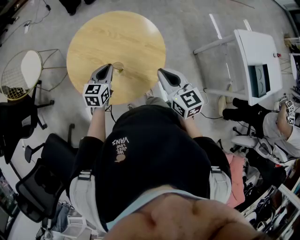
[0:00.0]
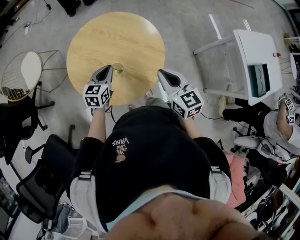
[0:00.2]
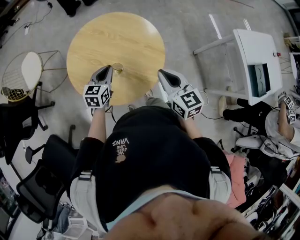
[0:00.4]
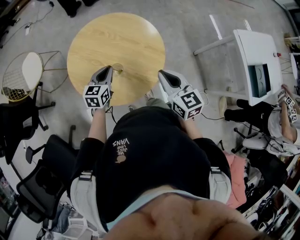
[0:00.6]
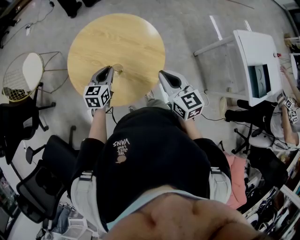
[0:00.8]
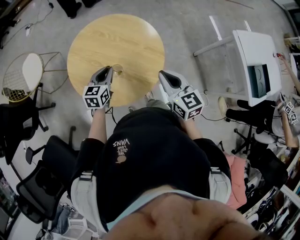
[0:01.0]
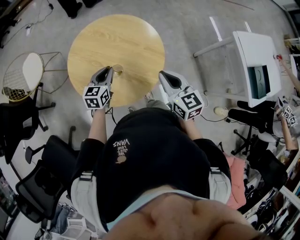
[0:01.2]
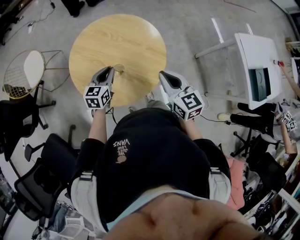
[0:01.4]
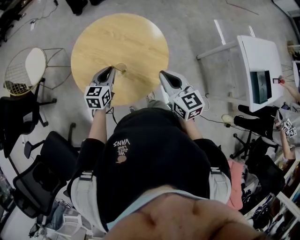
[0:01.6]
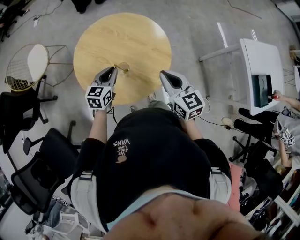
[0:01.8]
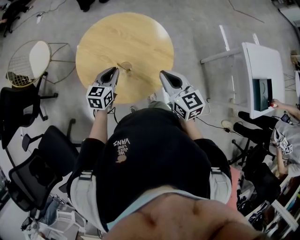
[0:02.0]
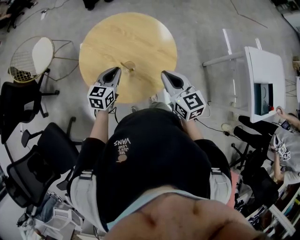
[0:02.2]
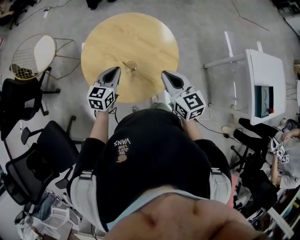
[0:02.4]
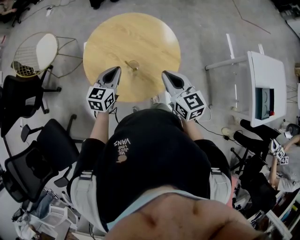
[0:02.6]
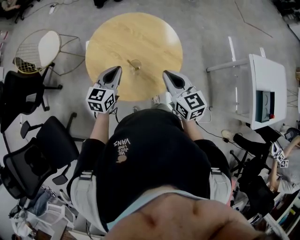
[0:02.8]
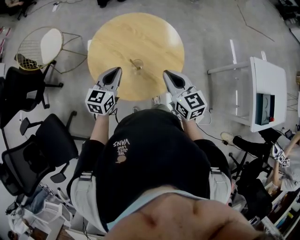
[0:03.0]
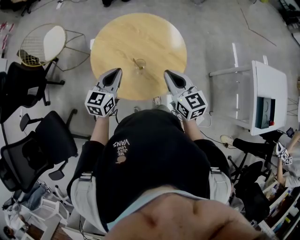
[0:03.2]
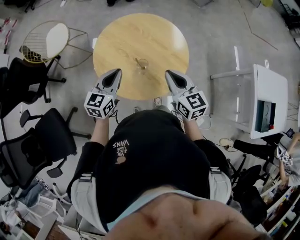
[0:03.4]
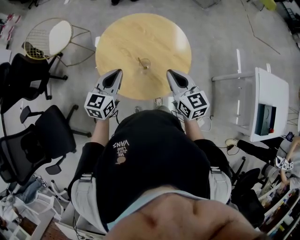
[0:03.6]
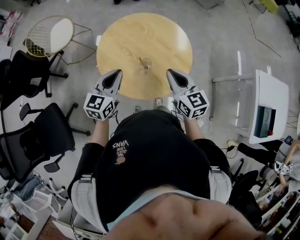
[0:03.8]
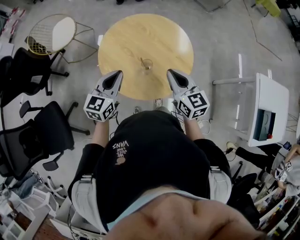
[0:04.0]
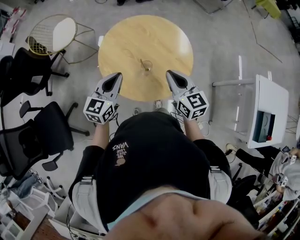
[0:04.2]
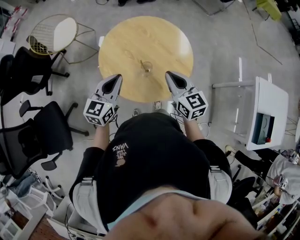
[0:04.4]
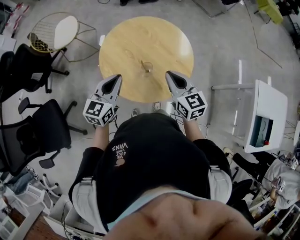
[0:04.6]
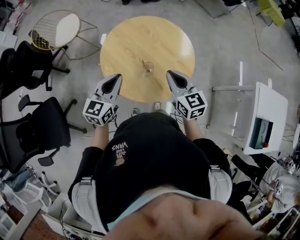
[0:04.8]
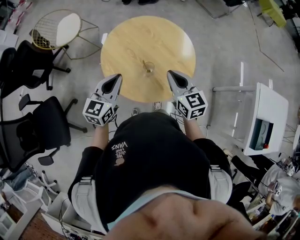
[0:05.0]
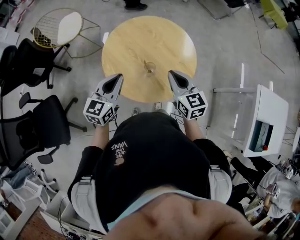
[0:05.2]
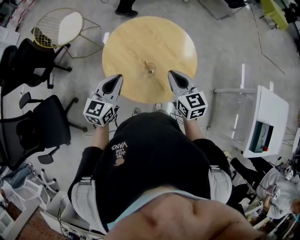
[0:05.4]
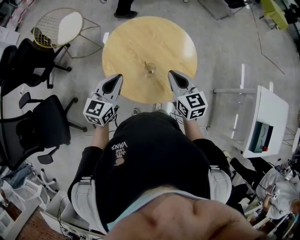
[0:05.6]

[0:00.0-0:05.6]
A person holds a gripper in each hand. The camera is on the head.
0.0 to 1.4 s: The grippers make only small movements.
1.4 to 2.8 s: The left gripper moves upward, approximately 5 cm.
2.8 to 4.2 s: The left gripper shifts approximately 10 cm upward and backward.
4.2 to 5.6 s: The grippers make only small movements.

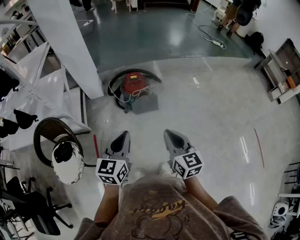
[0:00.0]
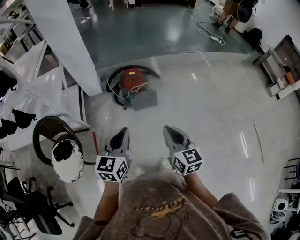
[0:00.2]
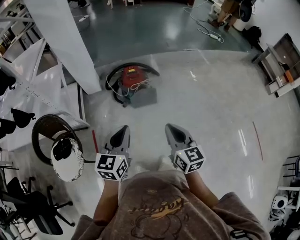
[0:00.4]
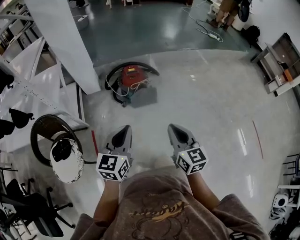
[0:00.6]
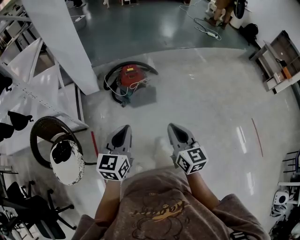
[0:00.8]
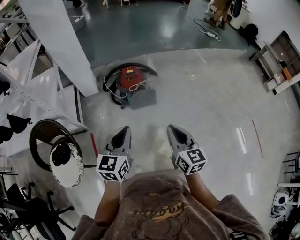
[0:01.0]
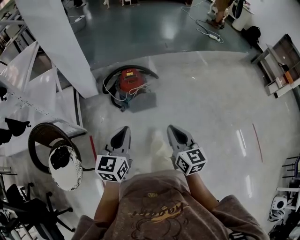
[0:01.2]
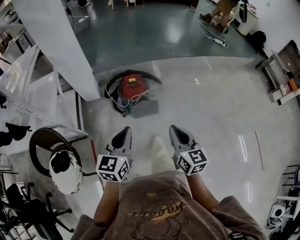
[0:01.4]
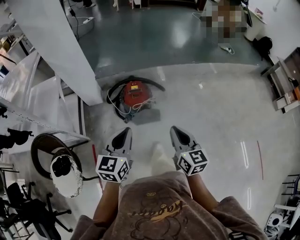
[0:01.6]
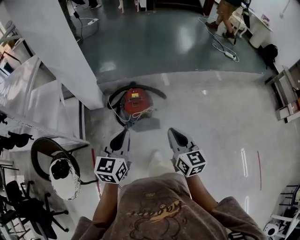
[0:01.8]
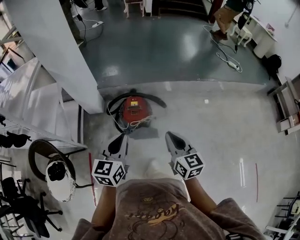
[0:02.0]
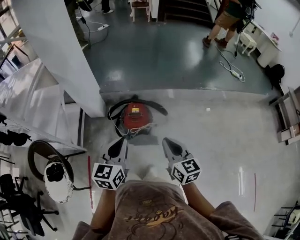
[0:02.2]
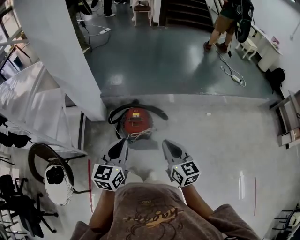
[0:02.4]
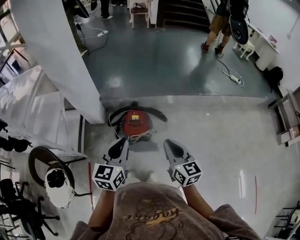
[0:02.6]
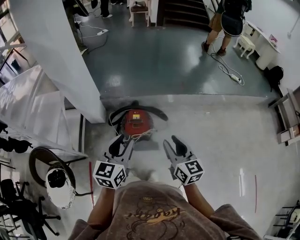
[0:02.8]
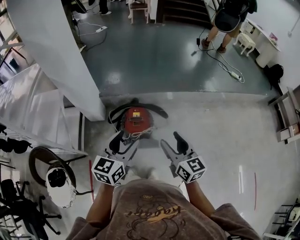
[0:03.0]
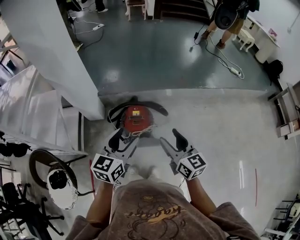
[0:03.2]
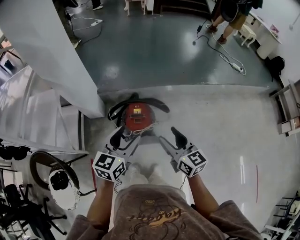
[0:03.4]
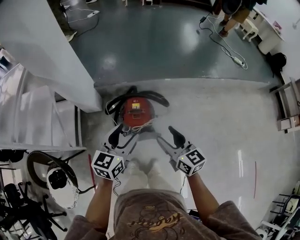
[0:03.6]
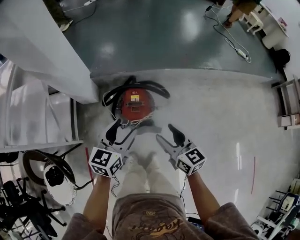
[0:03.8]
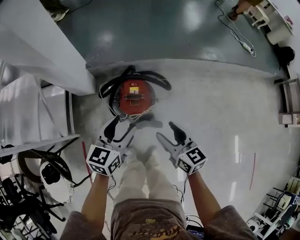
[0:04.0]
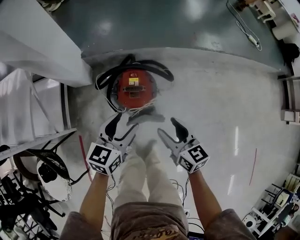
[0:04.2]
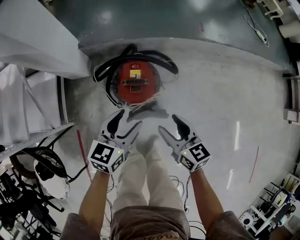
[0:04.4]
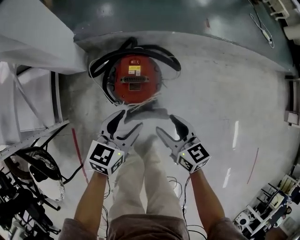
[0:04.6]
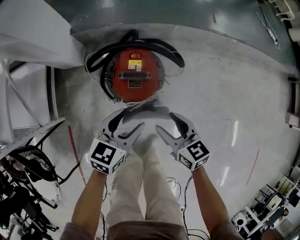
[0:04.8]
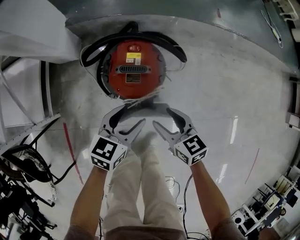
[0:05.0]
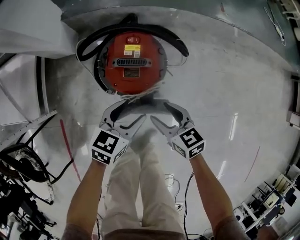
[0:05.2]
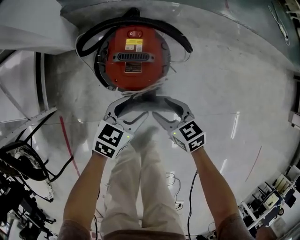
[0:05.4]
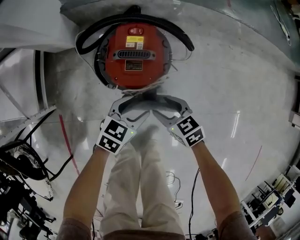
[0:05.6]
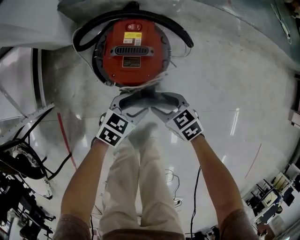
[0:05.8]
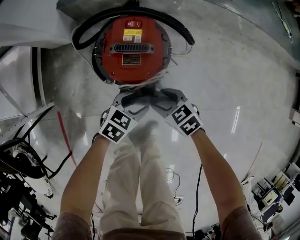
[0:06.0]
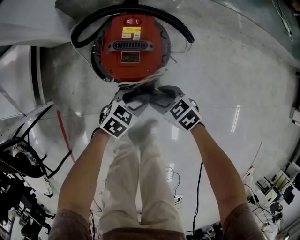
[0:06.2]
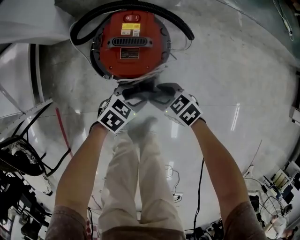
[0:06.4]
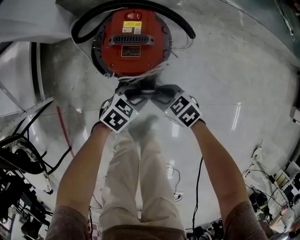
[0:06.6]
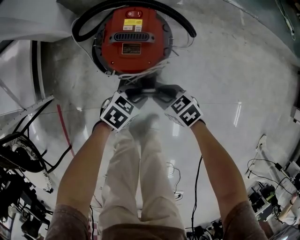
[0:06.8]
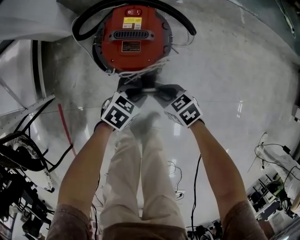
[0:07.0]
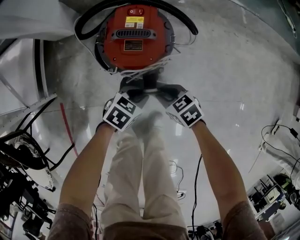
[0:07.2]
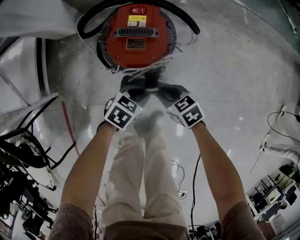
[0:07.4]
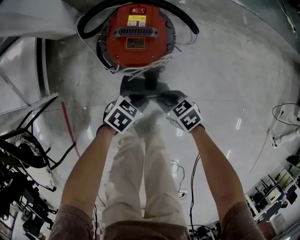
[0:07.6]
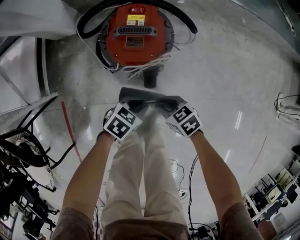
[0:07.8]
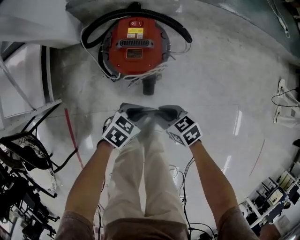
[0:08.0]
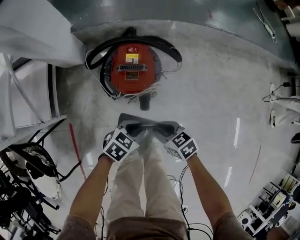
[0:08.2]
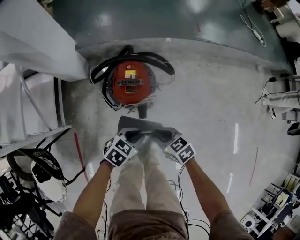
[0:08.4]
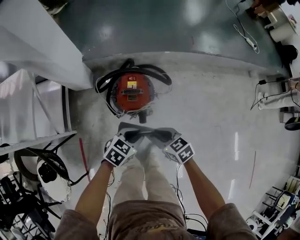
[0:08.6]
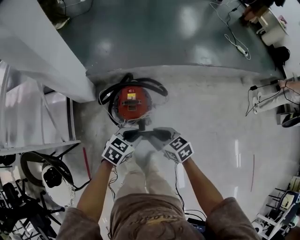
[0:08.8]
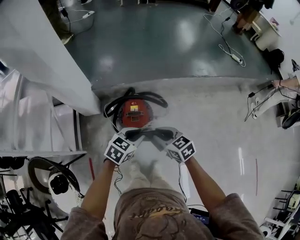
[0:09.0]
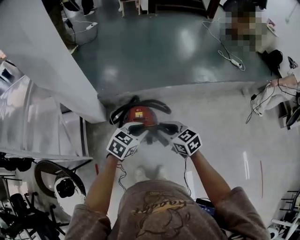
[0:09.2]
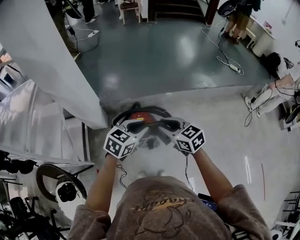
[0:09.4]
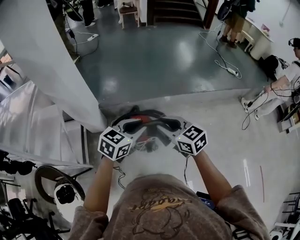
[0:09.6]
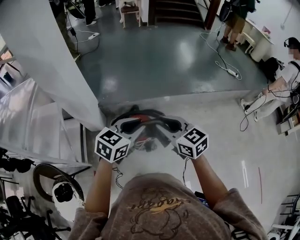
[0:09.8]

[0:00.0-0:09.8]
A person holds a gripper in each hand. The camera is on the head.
0.0 to 1.4 s: Both grippers move forward, roughly 10 cm.
1.4 to 2.8 s: The grippers both shift forward by roughly 20 cm. The left gripper opens its fingers. The right gripper opens.
2.8 to 4.2 s: The two grippers go some 25 cm downward and forward. The right gripper opens up; the left gripper opens.
4.2 to 5.6 s: Both grippers move downward, about 30 cm. The left gripper swivels approximately 20 degrees; the right gripper changes its angle by about 30 degrees.
5.6 to 7.0 s: The left gripper shifts some 5 cm downward, and closes up. The right gripper changes place by roughly 5 cm, and closes up.
7.0 to 8.4 s: The two grippers go about 20 cm upward.
8.4 to 9.8 s: The two grippers go about 40 cm upward. The left gripper swivels about 30 degrees; the right gripper rotates about 40 degrees.

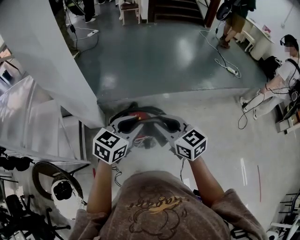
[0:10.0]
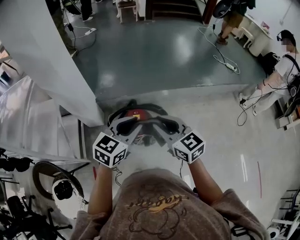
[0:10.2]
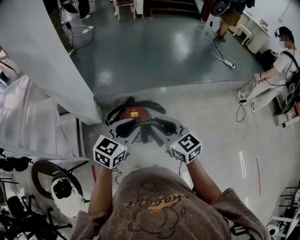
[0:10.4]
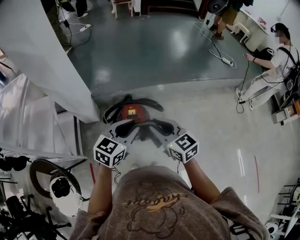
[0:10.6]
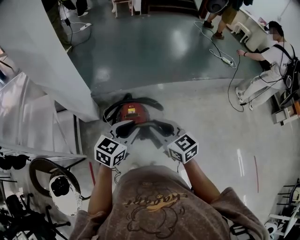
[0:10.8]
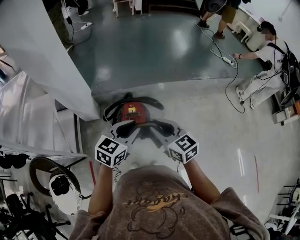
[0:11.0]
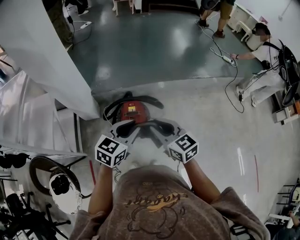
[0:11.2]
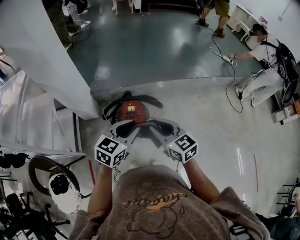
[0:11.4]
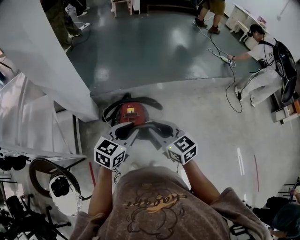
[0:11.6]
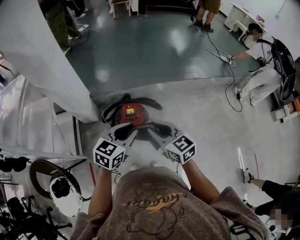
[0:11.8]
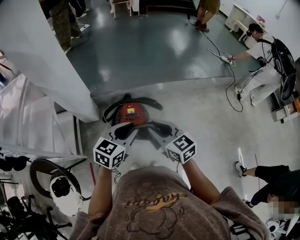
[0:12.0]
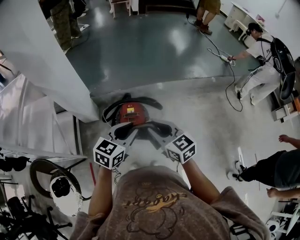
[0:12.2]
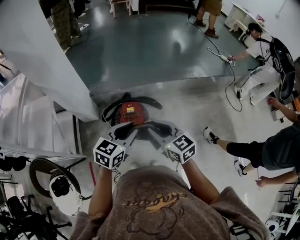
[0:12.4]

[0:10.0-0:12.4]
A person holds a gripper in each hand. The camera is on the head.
10.0 to 11.2 s: Both grippers move downward, roughly 5 cm.
11.2 to 12.4 s: Both grippers stay put.

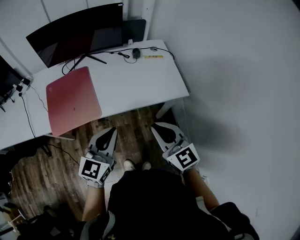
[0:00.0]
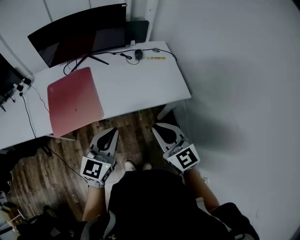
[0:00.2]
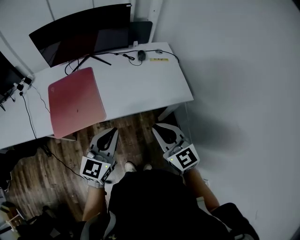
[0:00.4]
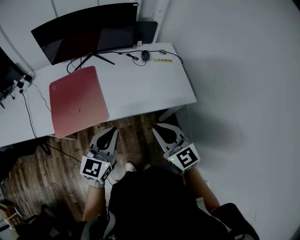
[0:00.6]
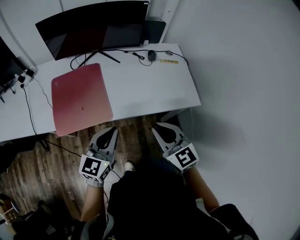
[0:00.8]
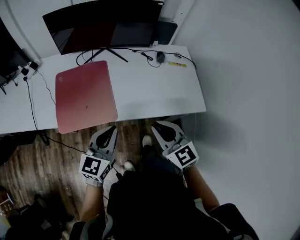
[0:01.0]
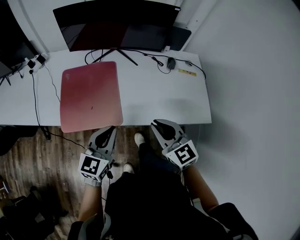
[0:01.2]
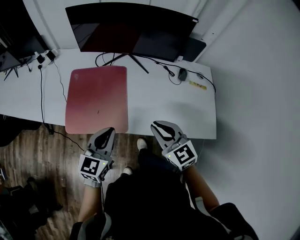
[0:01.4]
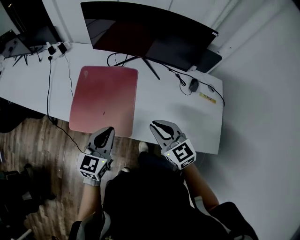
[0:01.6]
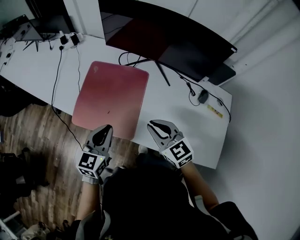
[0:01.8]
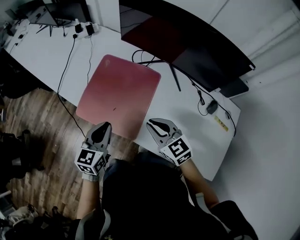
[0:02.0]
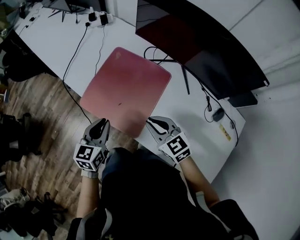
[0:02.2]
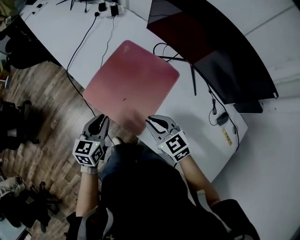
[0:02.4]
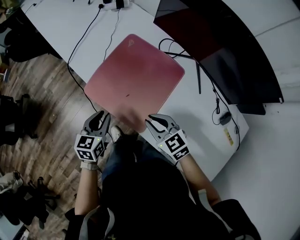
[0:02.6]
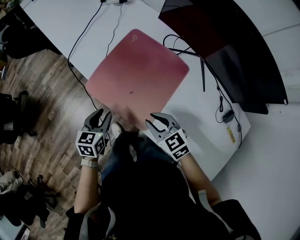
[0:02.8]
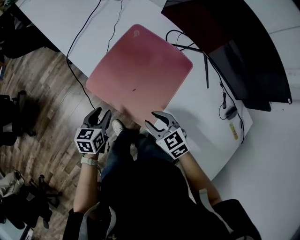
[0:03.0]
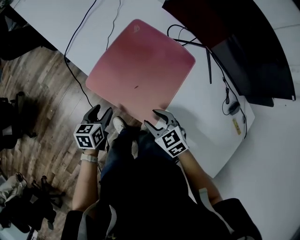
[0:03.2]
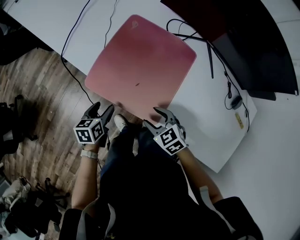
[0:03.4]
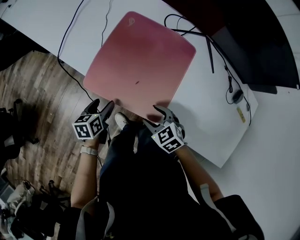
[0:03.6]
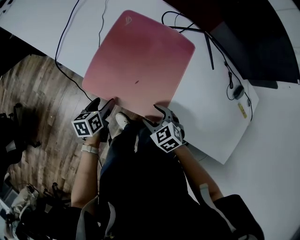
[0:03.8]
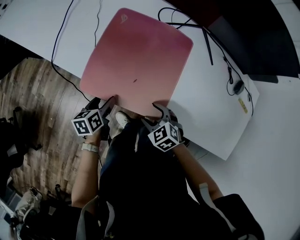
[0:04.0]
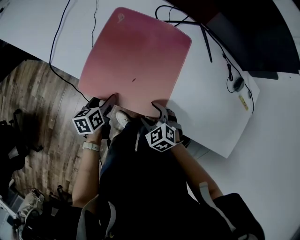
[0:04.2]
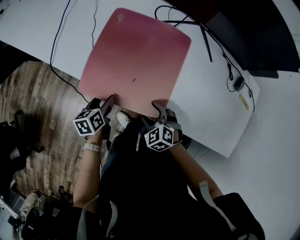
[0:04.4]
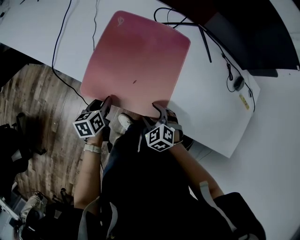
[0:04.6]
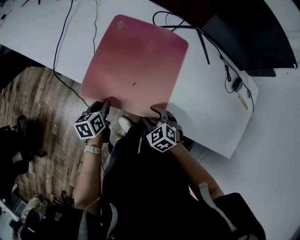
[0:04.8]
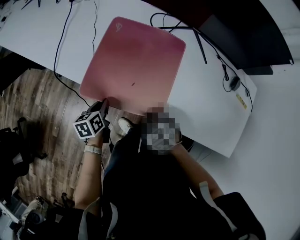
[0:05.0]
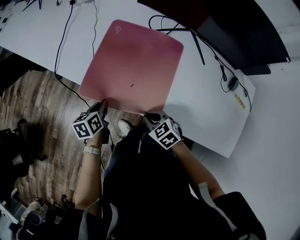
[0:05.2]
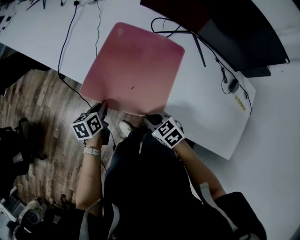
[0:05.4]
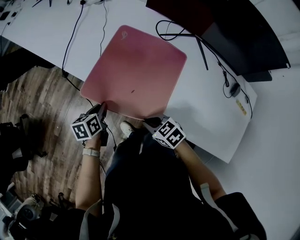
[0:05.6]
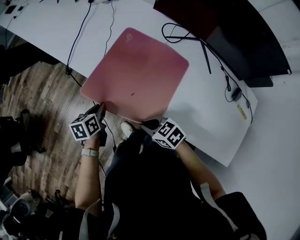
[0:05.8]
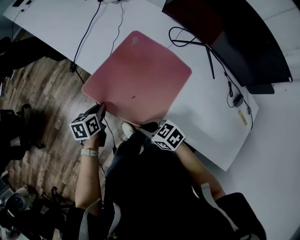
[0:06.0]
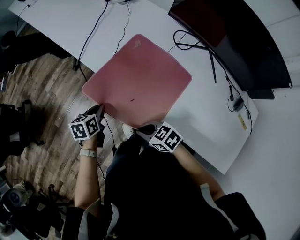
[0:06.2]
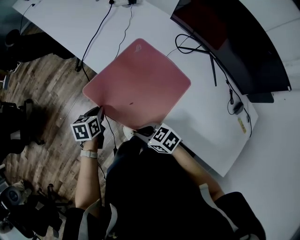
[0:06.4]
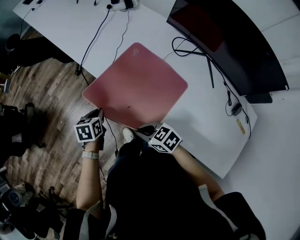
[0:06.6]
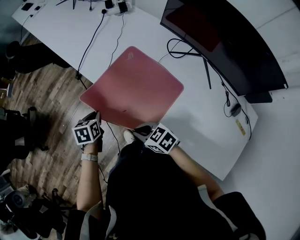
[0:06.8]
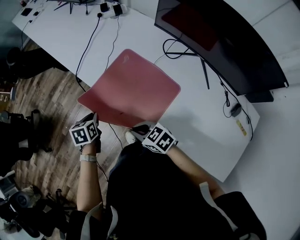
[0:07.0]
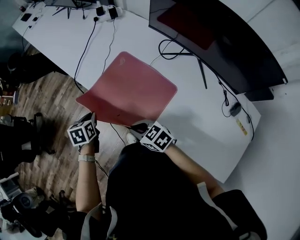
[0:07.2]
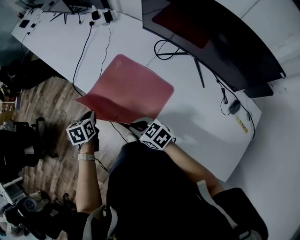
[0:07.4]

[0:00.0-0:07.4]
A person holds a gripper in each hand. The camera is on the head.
0.0 to 1.4 s: The grippers both shift forward and to the left by approximately 25 cm. The right gripper changes its angle by approximately 20 degrees; the left gripper turns by roughly 20 degrees.
1.4 to 3.0 s: Both grippers travel together downward, roughly 20 cm. The right gripper rotates approximately 50 degrees, and opens its fingers. The left gripper changes its angle by approximately 50 degrees, and opens its fingers.
3.0 to 4.4 s: The left gripper travels downward and forward by about 10 cm, and opens; the right gripper goes some 10 cm downward, rotates some 30 degrees, and opens up.
4.4 to 6.0 s: The left gripper changes place by about 10 cm, and closes up; the right gripper ends up approximately 10 cm from where it was, rotates about 40 degrees, and closes up.
6.0 to 7.4 s: The left gripper heads upward, covering approximately 5 cm, and turns by approximately 20 degrees. Meanwhile the right gripper goes some 10 cm to the right and upward.
